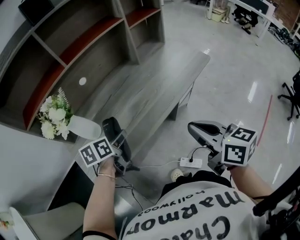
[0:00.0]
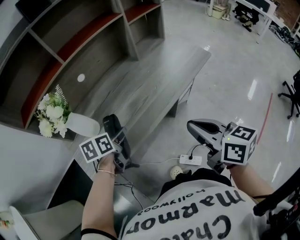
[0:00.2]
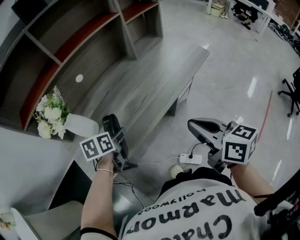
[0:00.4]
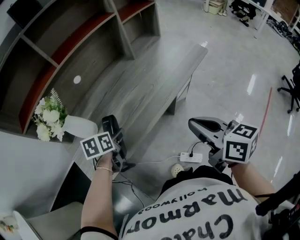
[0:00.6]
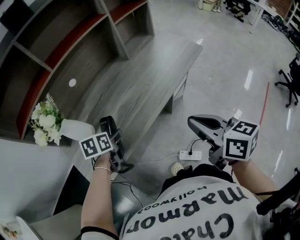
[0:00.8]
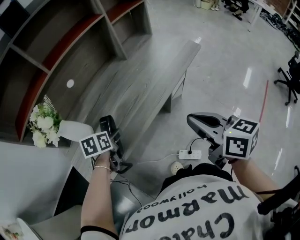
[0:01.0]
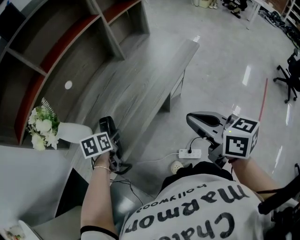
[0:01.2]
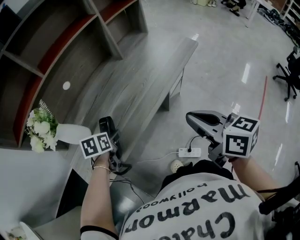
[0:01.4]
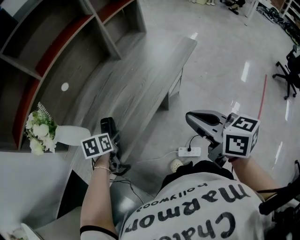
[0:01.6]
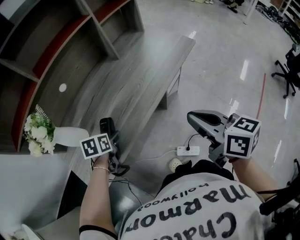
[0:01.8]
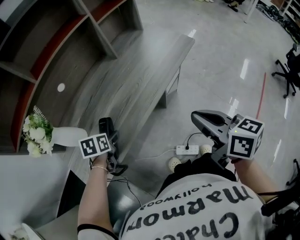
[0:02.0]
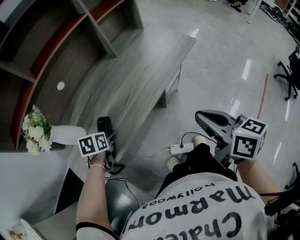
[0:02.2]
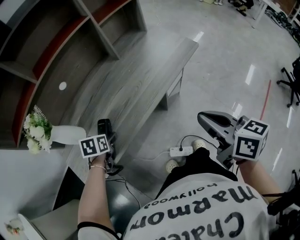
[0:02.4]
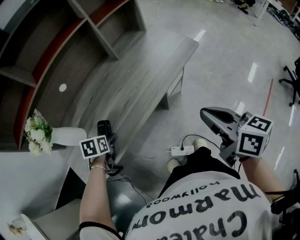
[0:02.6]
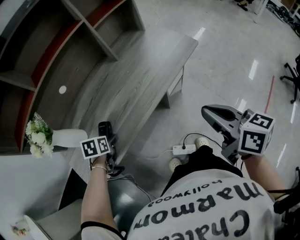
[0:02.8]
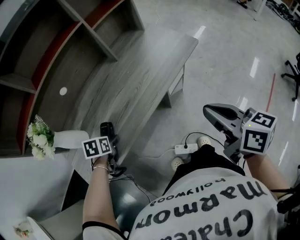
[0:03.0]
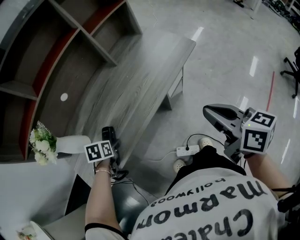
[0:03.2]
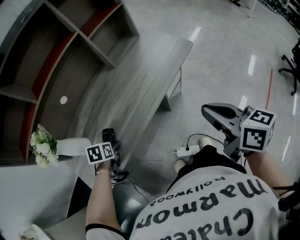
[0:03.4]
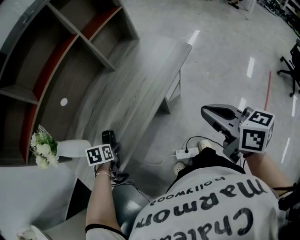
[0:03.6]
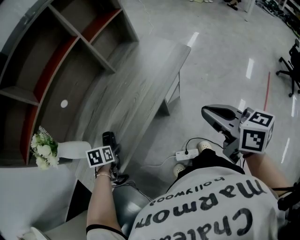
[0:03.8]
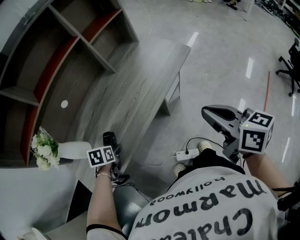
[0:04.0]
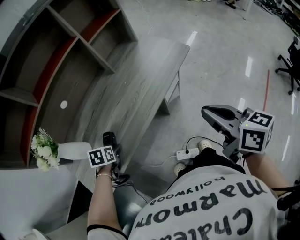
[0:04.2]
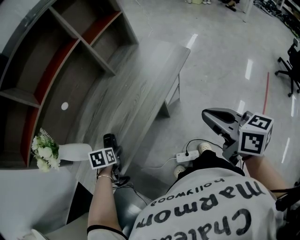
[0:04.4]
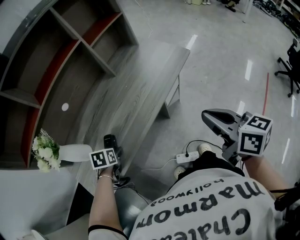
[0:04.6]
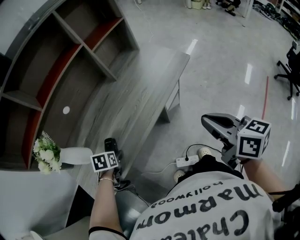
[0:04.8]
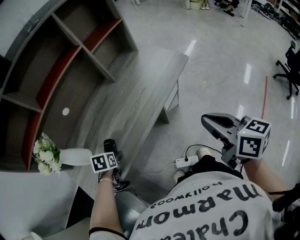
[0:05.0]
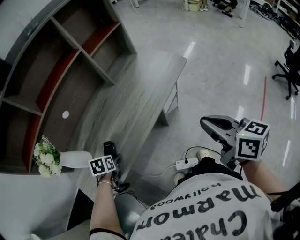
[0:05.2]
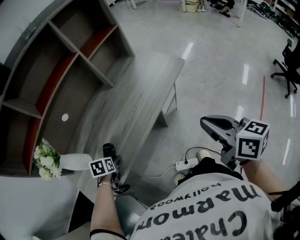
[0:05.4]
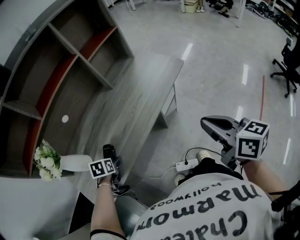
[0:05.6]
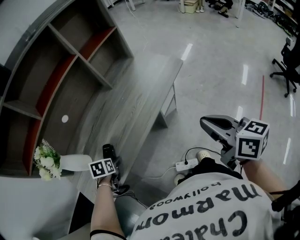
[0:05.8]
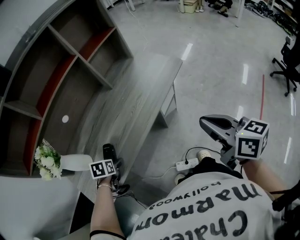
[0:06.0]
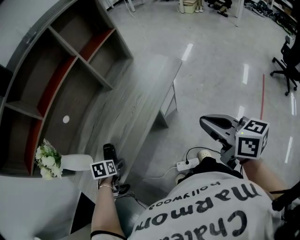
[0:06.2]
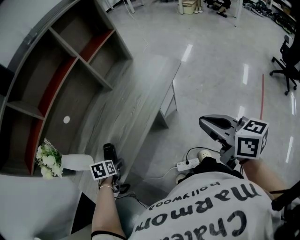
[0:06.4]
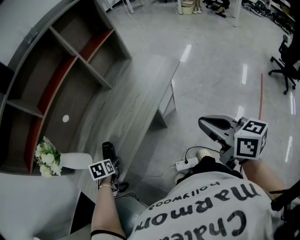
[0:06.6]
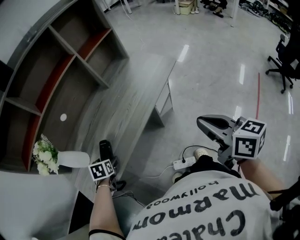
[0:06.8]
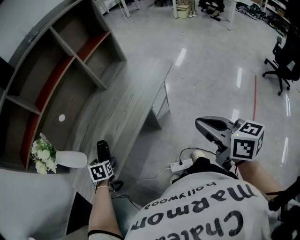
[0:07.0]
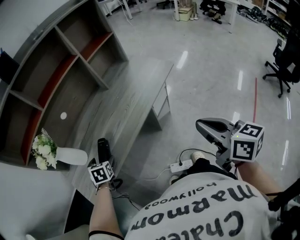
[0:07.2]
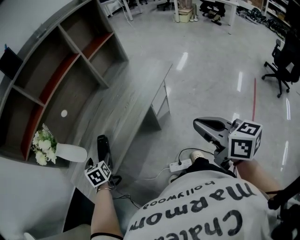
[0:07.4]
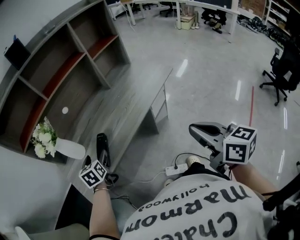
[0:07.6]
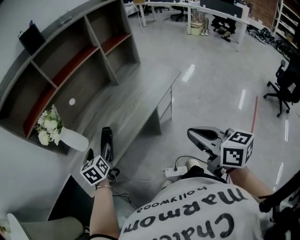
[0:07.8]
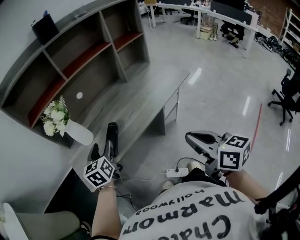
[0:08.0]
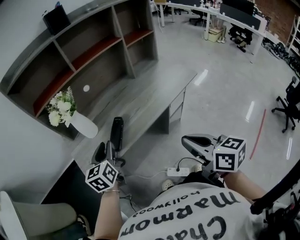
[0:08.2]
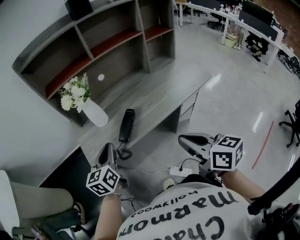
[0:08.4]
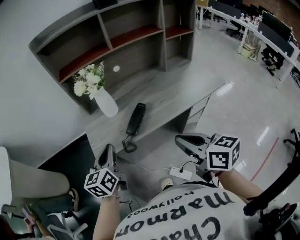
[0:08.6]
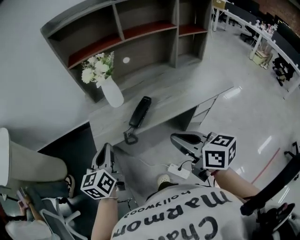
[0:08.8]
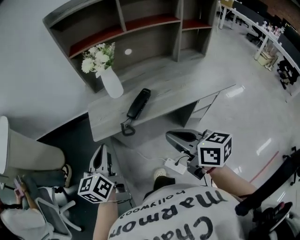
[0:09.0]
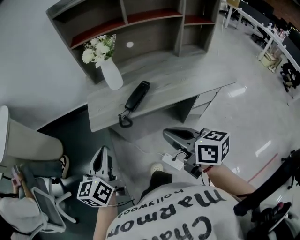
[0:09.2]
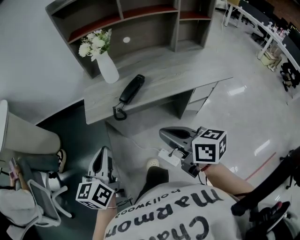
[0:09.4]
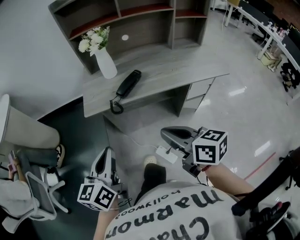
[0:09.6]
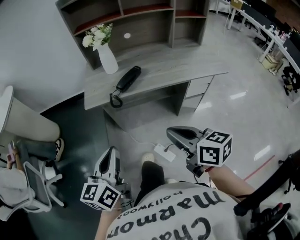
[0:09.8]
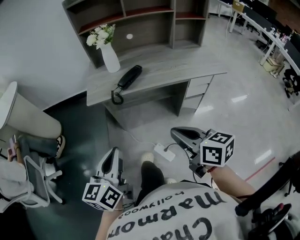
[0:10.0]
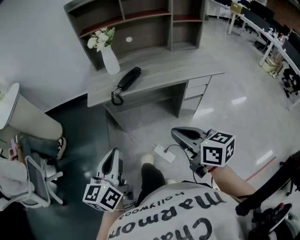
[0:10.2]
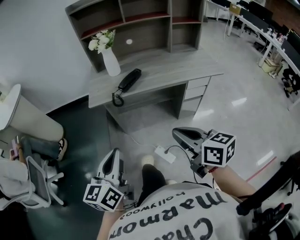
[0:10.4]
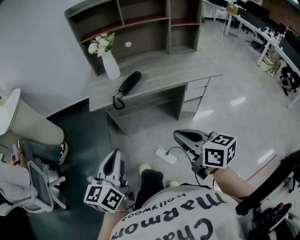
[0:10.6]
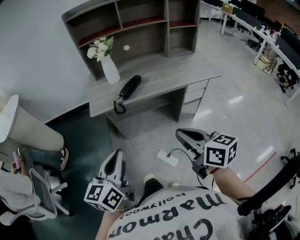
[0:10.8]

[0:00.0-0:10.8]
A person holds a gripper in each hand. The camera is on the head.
0:00.0 to 0:01.6: The left gripper goes roughly 5 cm downward, and turns by approximately 20 degrees.
0:01.6 to 0:03.0: The right gripper goes some 10 cm to the right.
0:03.0 to 0:06.2: The grippers stay close to where they were, moving slightly.
0:06.2 to 0:07.8: The left gripper shifts some 15 cm upward, and tilts its fingers roughly 40 degrees upward. The right gripper is displaced to the left and backward by roughly 10 cm.
0:07.8 to 0:09.2: The left gripper changes place by roughly 30 cm, changes its angle by some 30 degrees, and closes its fingers. The right gripper shifts by approximately 20 cm, and turns by about 40 degrees.
0:09.2 to 0:10.8: The two grippers go approximately 20 cm backward.

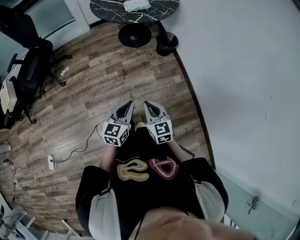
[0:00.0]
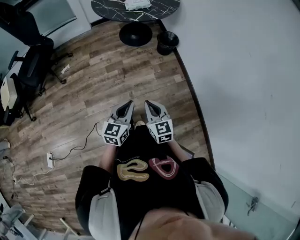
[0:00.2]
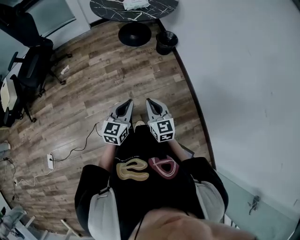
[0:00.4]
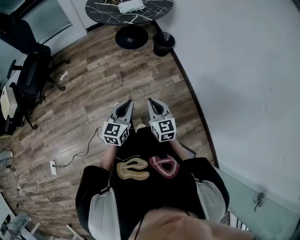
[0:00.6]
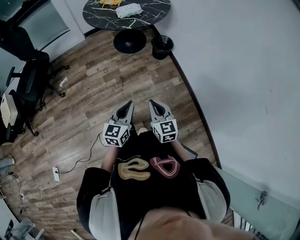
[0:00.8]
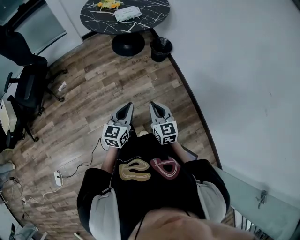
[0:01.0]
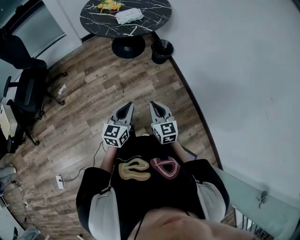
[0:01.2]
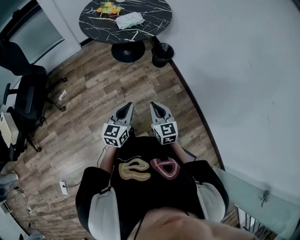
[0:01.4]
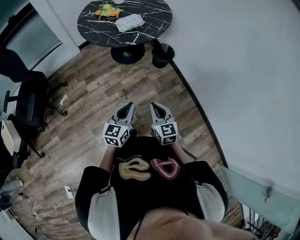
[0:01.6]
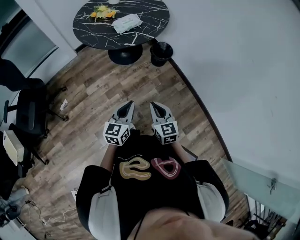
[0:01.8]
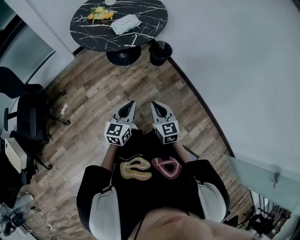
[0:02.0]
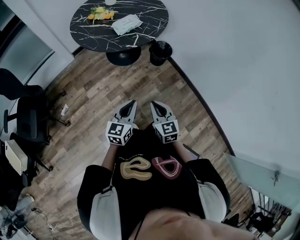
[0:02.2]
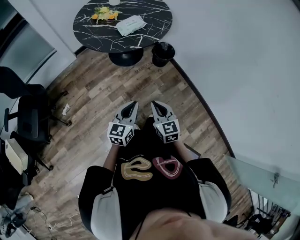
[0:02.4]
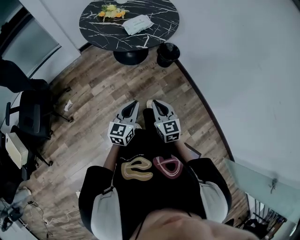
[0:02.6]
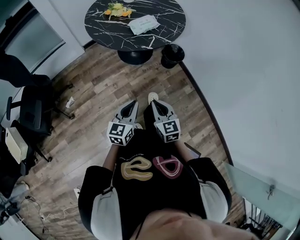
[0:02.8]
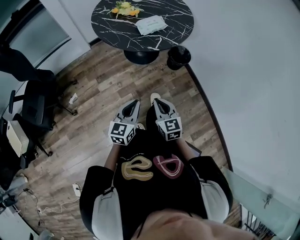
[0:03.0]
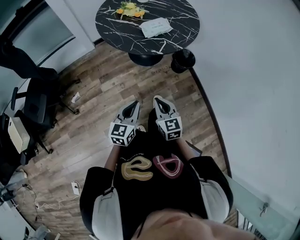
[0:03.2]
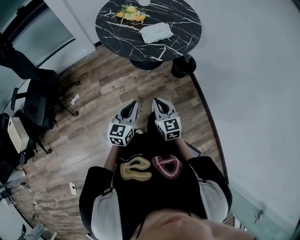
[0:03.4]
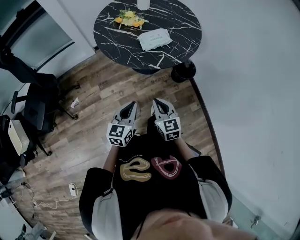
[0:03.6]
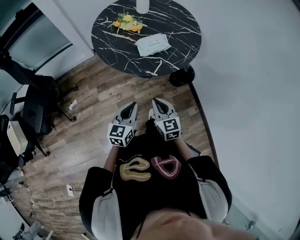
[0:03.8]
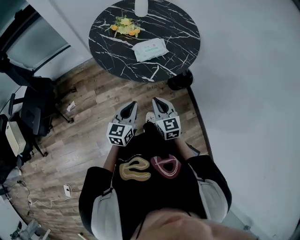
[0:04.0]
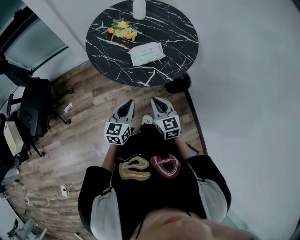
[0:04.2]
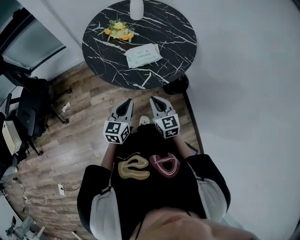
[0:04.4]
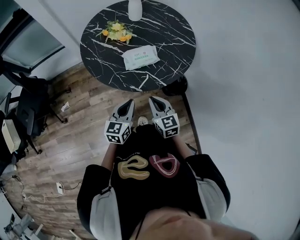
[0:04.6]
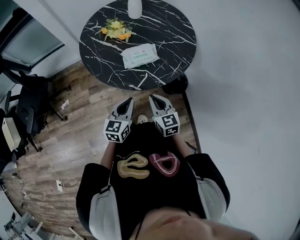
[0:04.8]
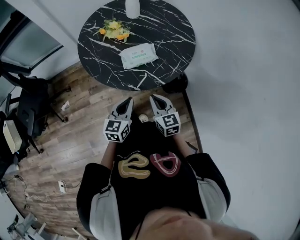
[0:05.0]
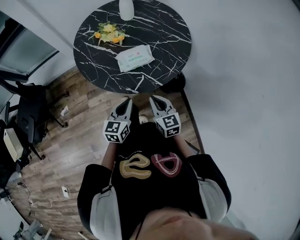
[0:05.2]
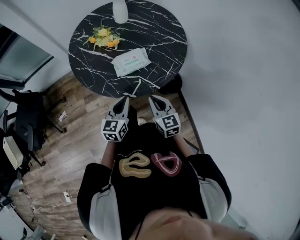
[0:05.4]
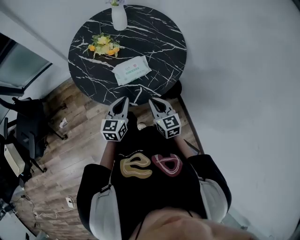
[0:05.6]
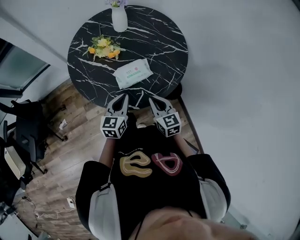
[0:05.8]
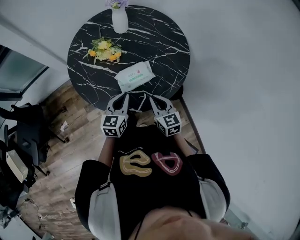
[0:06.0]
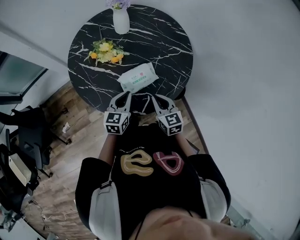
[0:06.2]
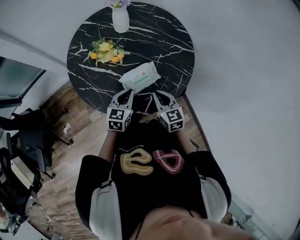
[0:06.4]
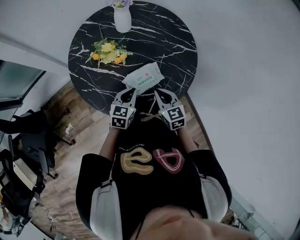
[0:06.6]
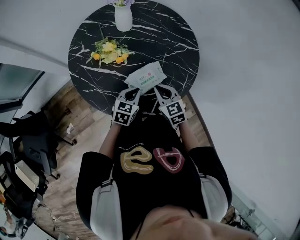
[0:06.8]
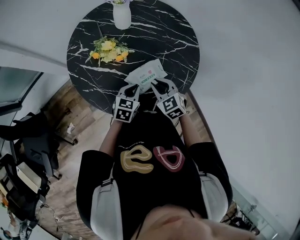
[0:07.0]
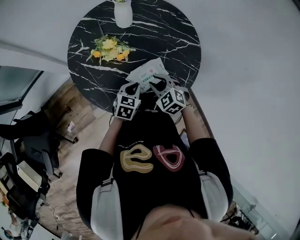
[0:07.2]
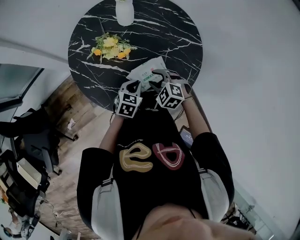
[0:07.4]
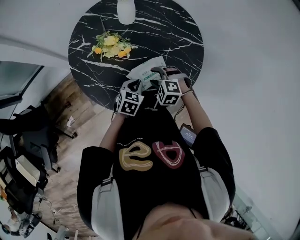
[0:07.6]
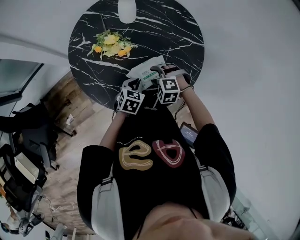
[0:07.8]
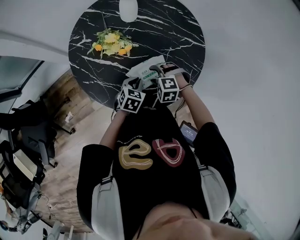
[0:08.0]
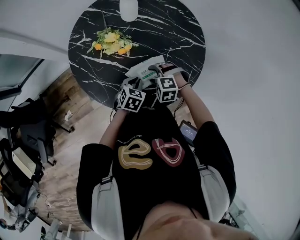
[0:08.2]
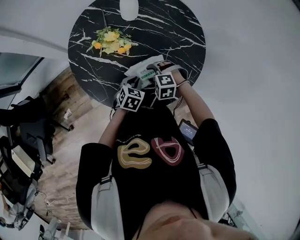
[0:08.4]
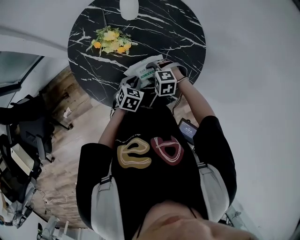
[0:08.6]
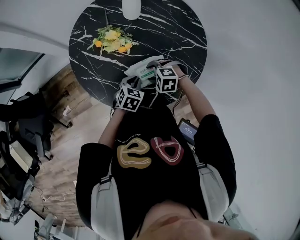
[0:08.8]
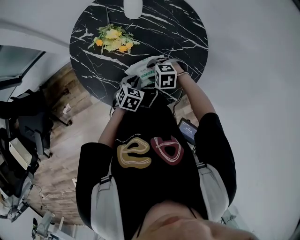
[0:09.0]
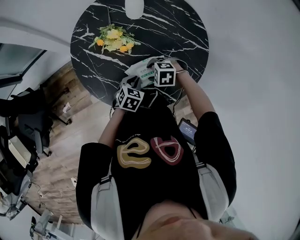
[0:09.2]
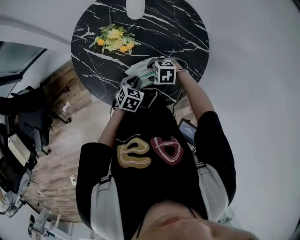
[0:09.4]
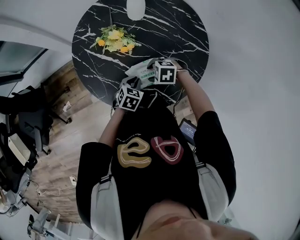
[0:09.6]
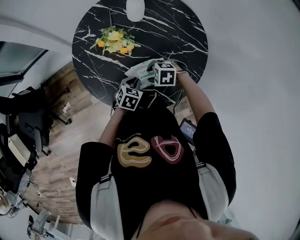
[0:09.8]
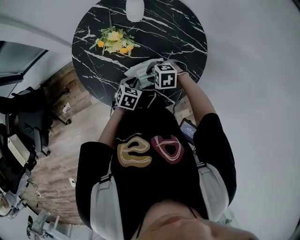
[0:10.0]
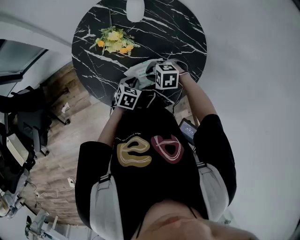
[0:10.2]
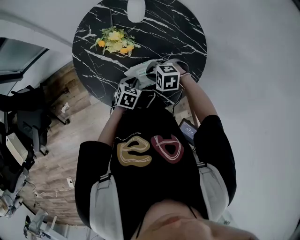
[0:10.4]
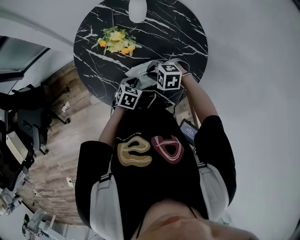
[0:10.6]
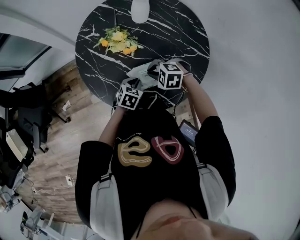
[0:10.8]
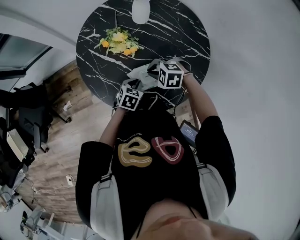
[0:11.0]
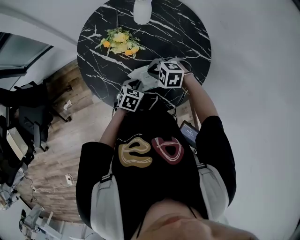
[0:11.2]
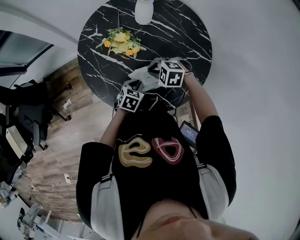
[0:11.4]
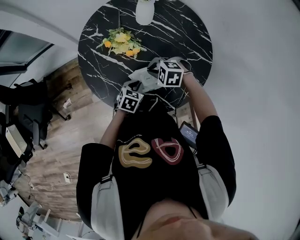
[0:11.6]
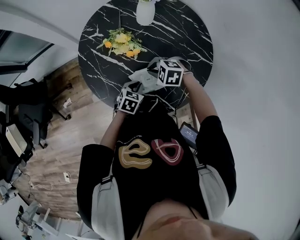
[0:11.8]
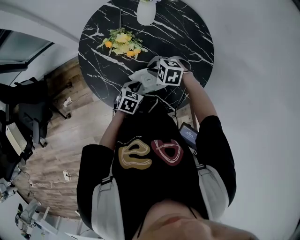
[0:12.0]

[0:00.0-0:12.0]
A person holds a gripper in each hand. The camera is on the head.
0:00.0 to 0:01.6: The left gripper goes about 20 cm forward and to the left, while the right gripper moves forward, about 15 cm.
0:01.6 to 0:03.0: The grippers both shift to the left and forward by some 15 cm.
0:03.0 to 0:04.4: The right gripper heads forward and to the right, covering roughly 30 cm. Meanwhile the left gripper moves forward, approximately 25 cm.
0:04.4 to 0:06.0: The two grippers go some 15 cm forward.
0:06.0 to 0:07.6: The left gripper moves downward and forward, about 10 cm, and turns by some 30 degrees, while the right gripper is displaced forward, to the left and downward by roughly 15 cm, rolls counterclockwise, seen from behind, by approximately 60 degrees, and opens.
0:07.6 to 0:09.0: The right gripper swivels approximately 20 degrees.
0:09.0 to 0:10.4: The right gripper closes up.
0:10.4 to 0:12.0: The right gripper moves forward, some 5 cm.

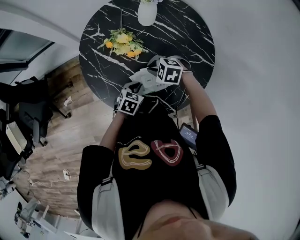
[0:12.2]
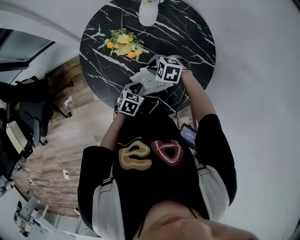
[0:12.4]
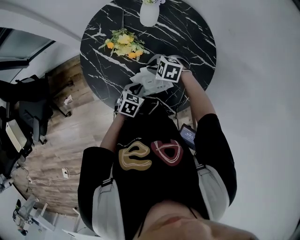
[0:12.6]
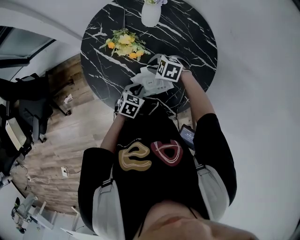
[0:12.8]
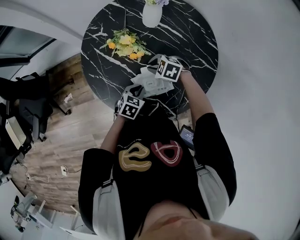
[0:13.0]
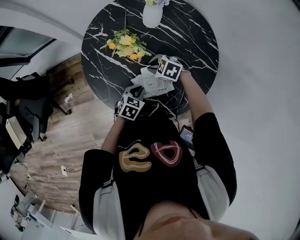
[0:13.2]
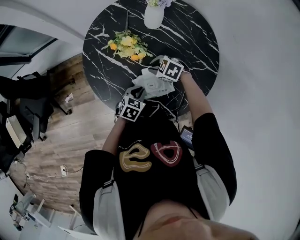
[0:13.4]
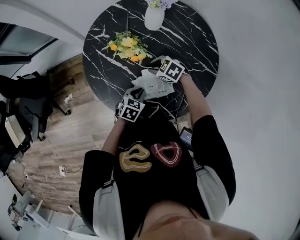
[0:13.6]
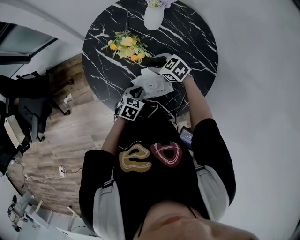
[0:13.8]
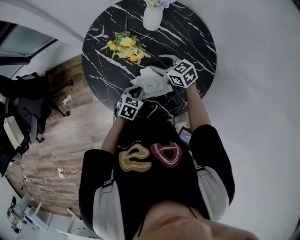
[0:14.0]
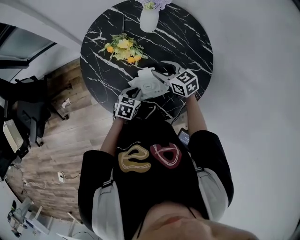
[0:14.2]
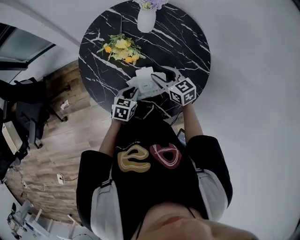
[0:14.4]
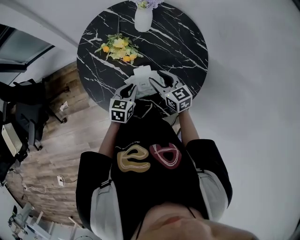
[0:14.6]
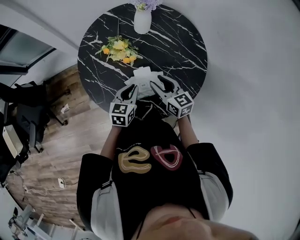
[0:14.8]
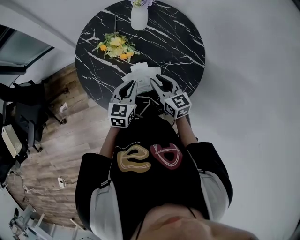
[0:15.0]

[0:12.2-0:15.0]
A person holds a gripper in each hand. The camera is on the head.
0:12.2 to 0:13.6: The right gripper moves some 5 cm, and rotates some 20 degrees.
0:13.6 to 0:15.0: The left gripper goes approximately 15 cm upward, and turns by some 30 degrees, while the right gripper heads upward, backward and to the right, covering approximately 15 cm, and tips its fingers upward by approximately 30 degrees.
